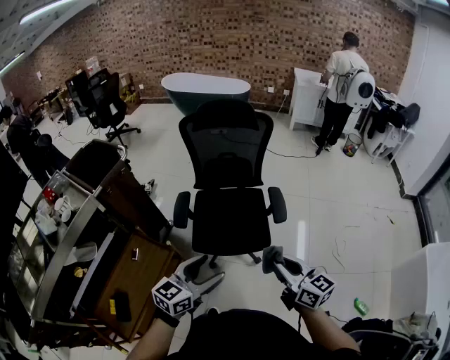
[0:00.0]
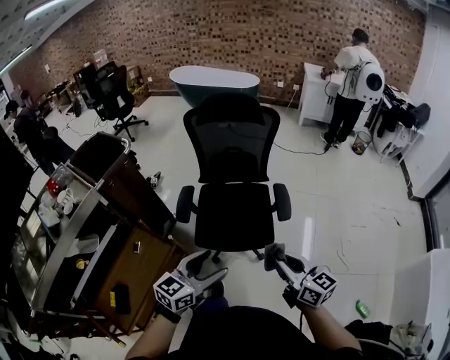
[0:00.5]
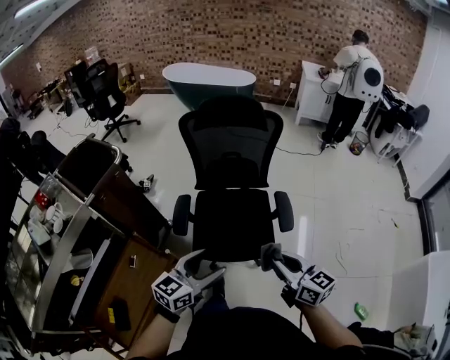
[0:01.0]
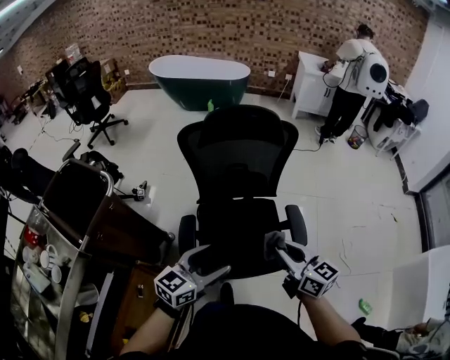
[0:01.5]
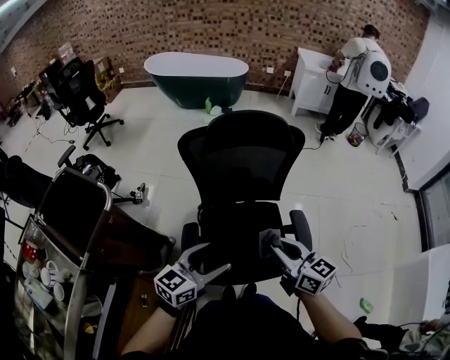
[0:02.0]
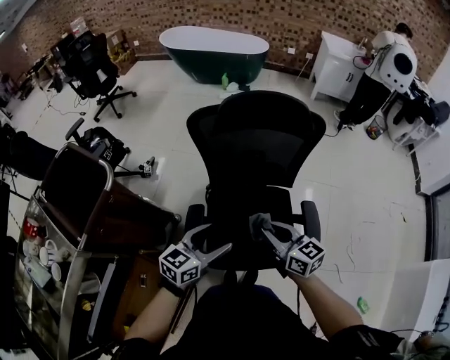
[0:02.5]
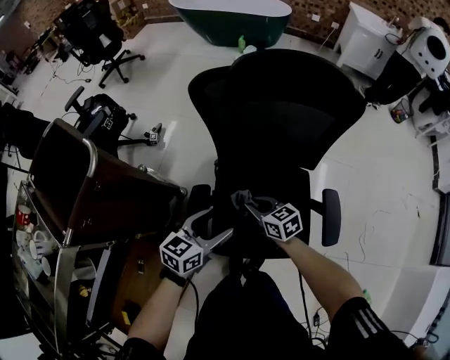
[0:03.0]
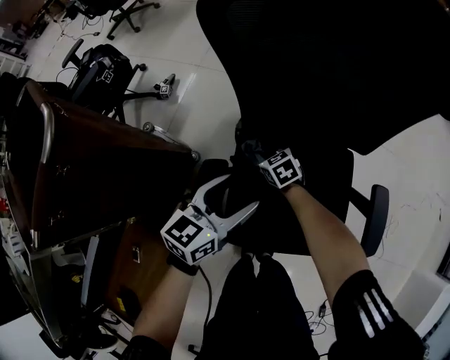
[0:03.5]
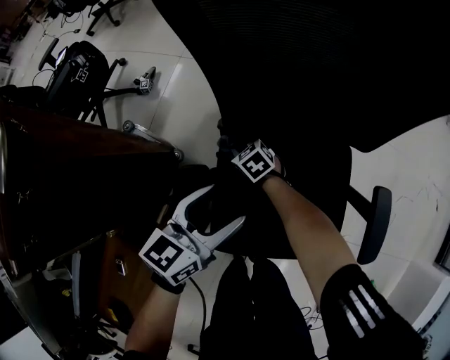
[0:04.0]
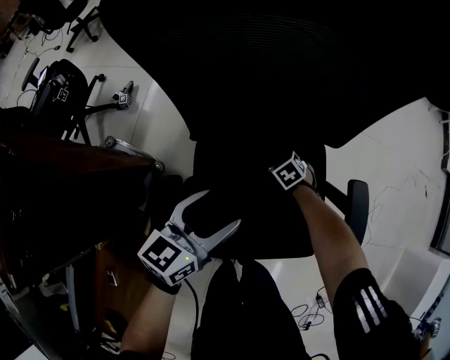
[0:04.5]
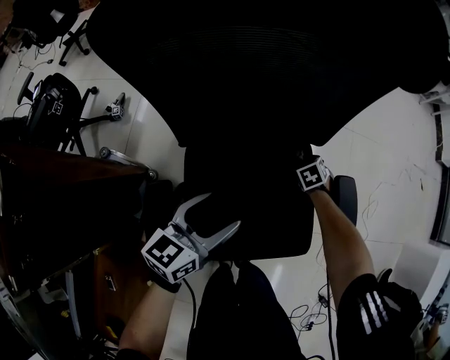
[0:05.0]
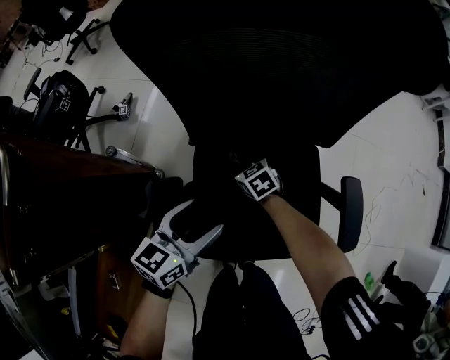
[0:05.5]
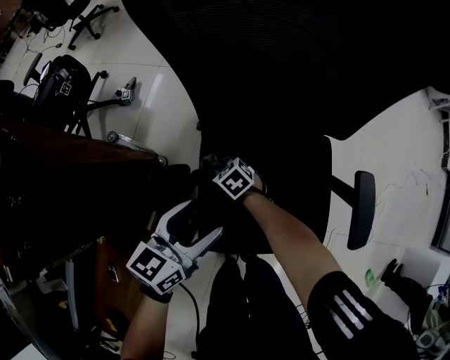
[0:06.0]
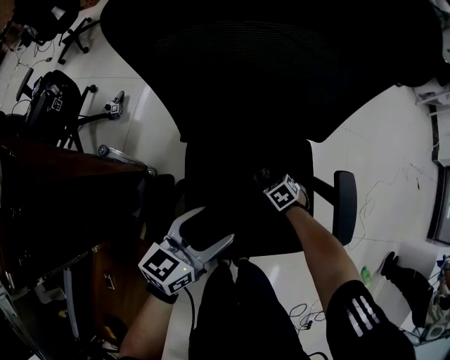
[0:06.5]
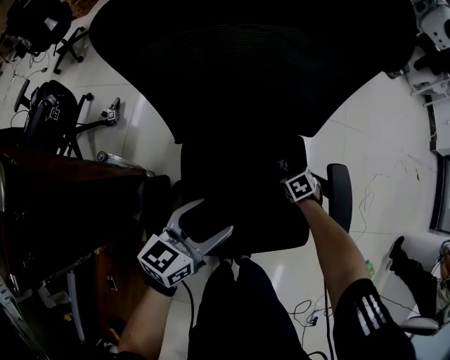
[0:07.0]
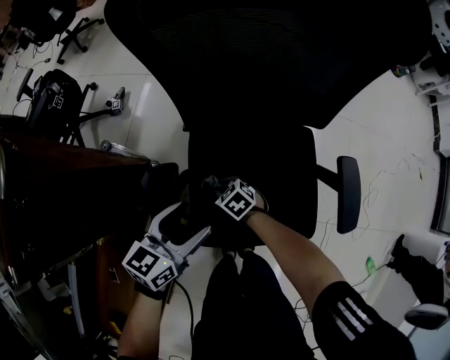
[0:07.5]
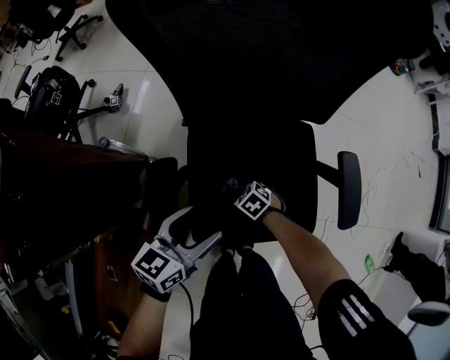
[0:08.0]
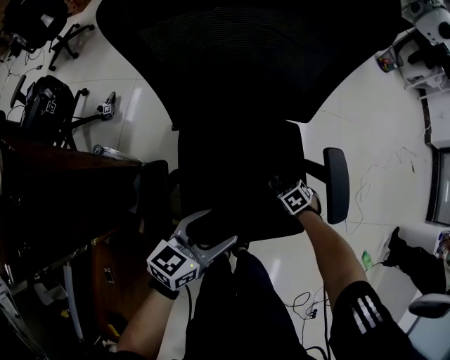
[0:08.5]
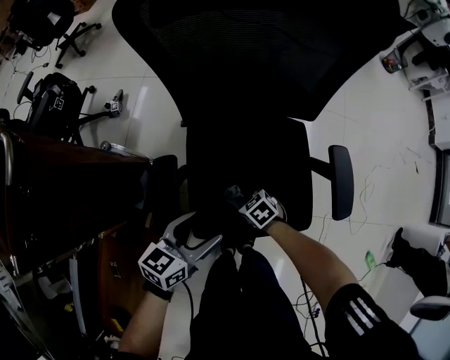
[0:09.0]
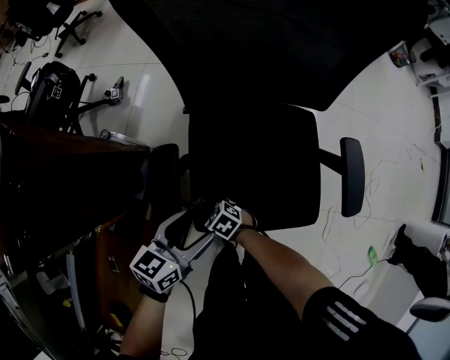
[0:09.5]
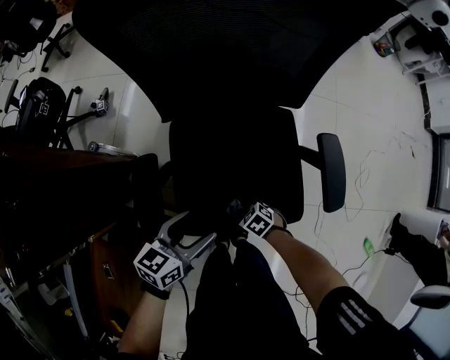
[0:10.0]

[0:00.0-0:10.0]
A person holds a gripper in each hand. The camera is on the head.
0:00.0 to 0:02.0: The left gripper heads forward, covering some 30 cm, while the right gripper heads forward and to the left, covering roughly 35 cm.
0:02.0 to 0:04.0: The right gripper travels downward and forward by roughly 60 cm, and tips its fingers downward by roughly 40 degrees; the left gripper heads downward and forward, covering about 30 cm, and turns by approximately 20 degrees.
0:04.0 to 0:06.0: The right gripper goes upward and returns, some 5 cm each way.
0:06.0 to 0:08.0: The left gripper moves backward, roughly 5 cm, and reaches some 10 cm to the right, then returns; the right gripper swings left and right, about 35 cm each way, with 2 reversals.
0:08.0 to 0:10.0: The left gripper ends up roughly 5 cm from where it was.

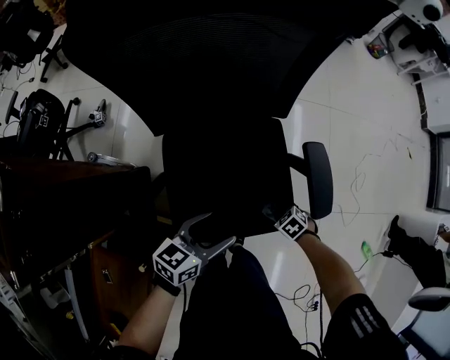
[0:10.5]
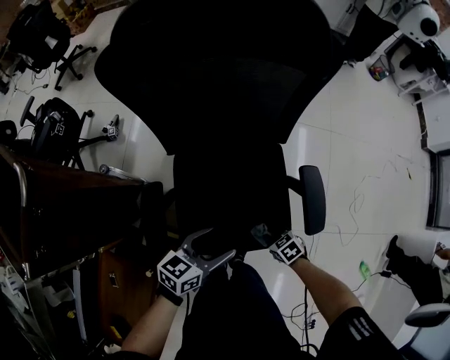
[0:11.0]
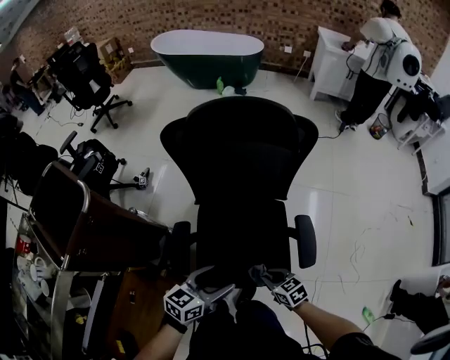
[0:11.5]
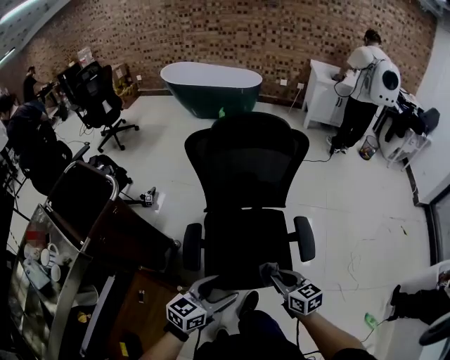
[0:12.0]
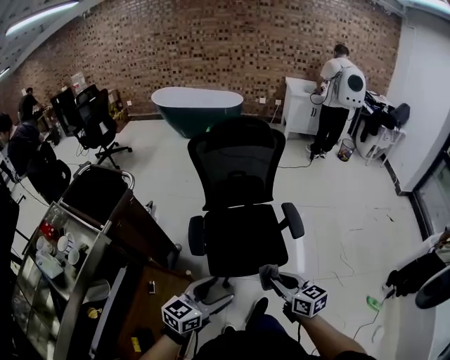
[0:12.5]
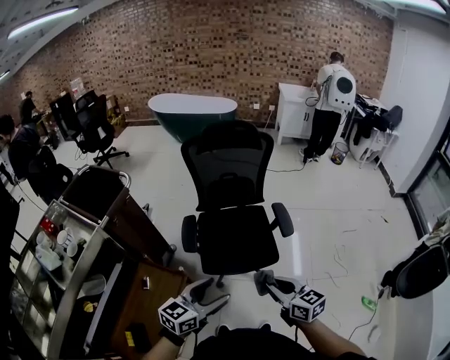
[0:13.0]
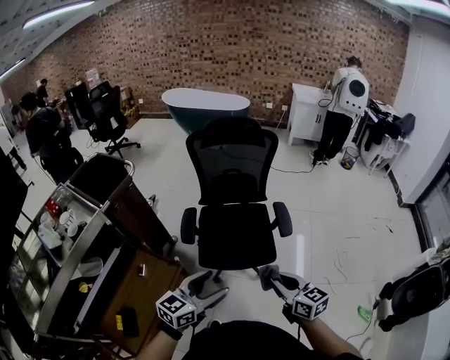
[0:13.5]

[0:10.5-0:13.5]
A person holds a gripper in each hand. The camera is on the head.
0:10.5 to 0:12.0: The right gripper heads upward, covering about 40 cm, and points its fingers about 50 degrees further upward. Meanwhile the left gripper is displaced upward by about 25 cm.
0:12.0 to 0:13.5: Both grippers move backward and upward, some 25 cm.

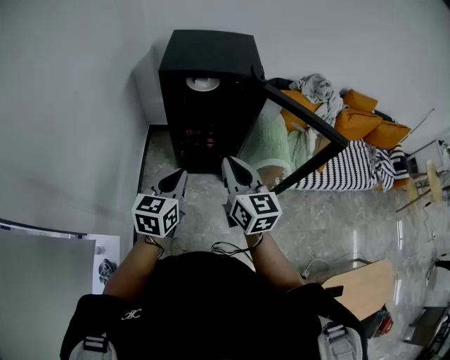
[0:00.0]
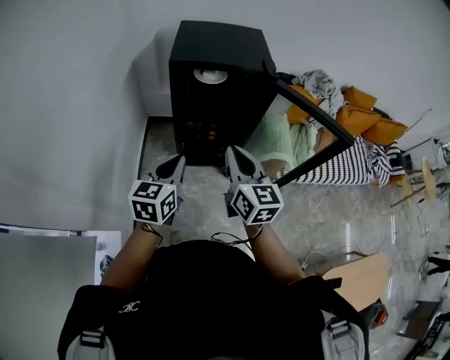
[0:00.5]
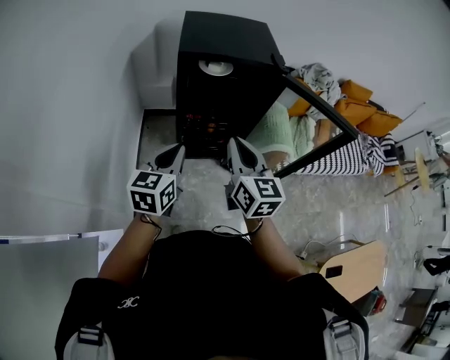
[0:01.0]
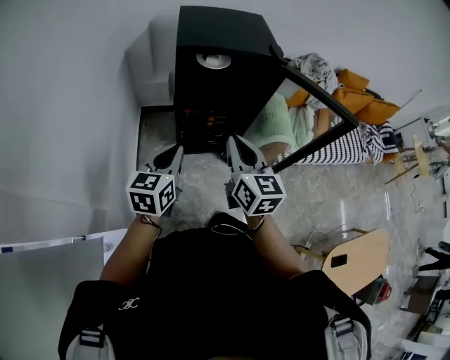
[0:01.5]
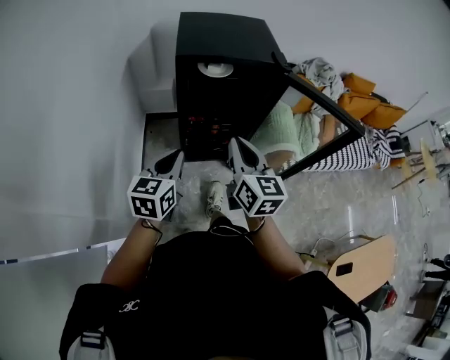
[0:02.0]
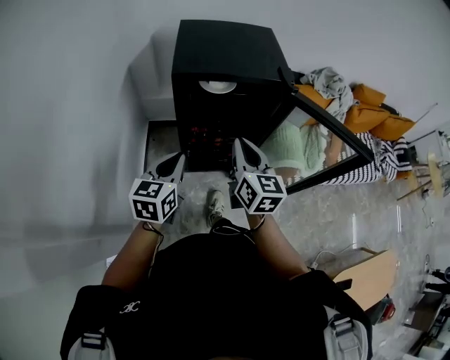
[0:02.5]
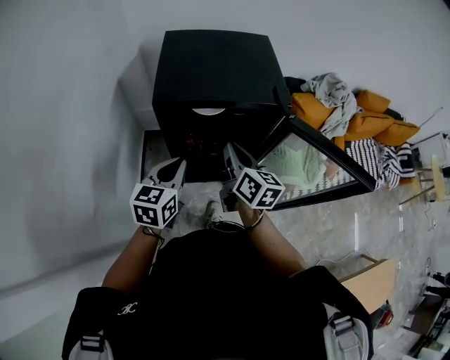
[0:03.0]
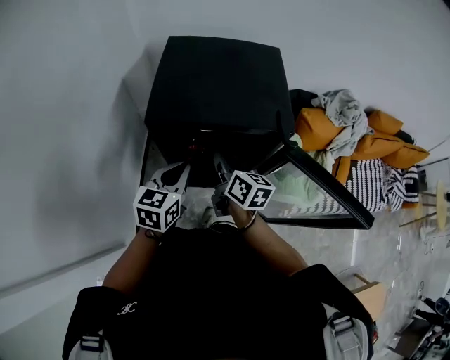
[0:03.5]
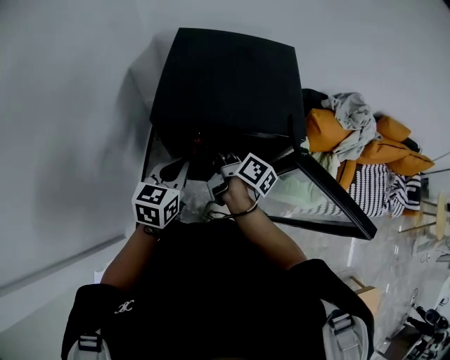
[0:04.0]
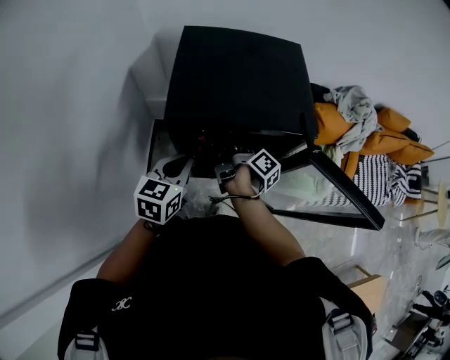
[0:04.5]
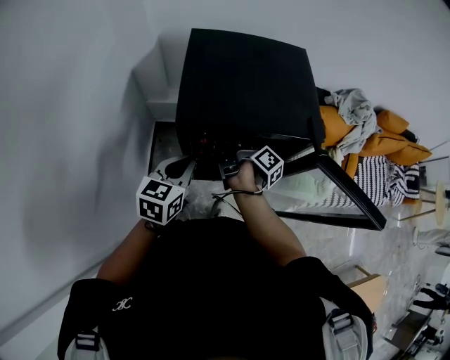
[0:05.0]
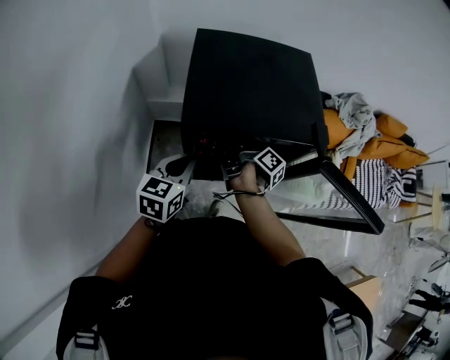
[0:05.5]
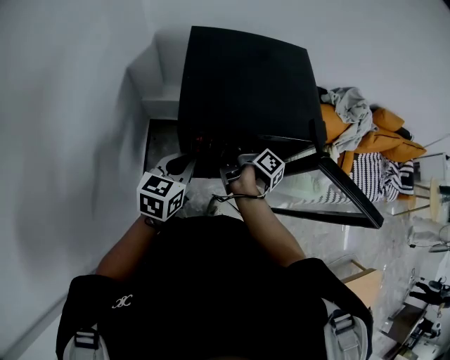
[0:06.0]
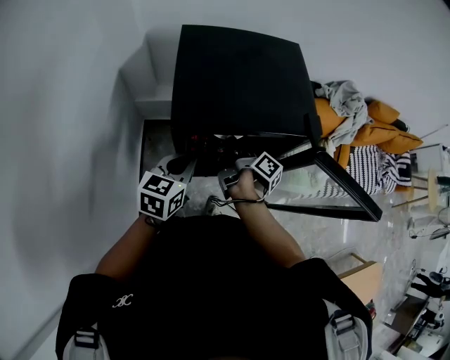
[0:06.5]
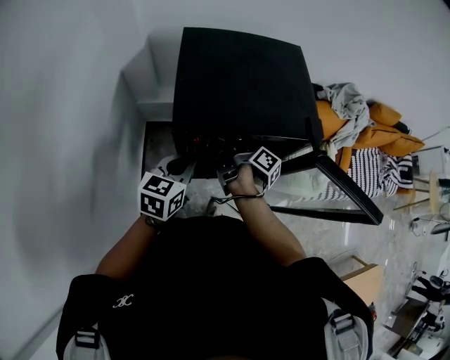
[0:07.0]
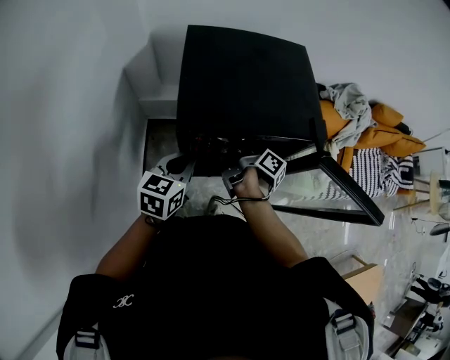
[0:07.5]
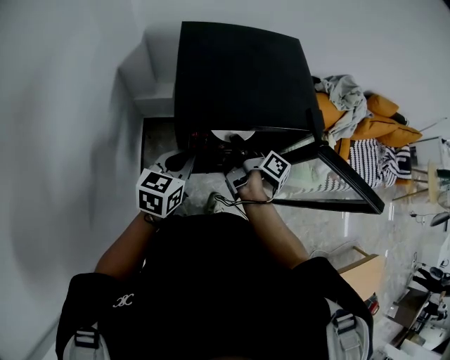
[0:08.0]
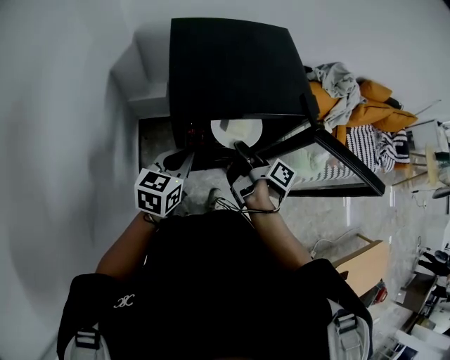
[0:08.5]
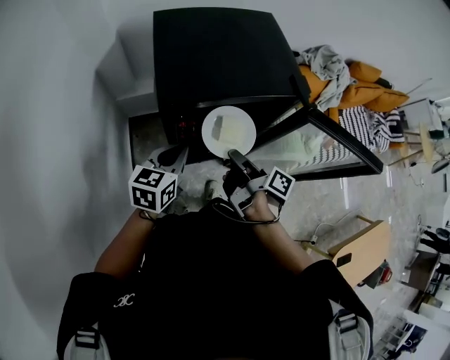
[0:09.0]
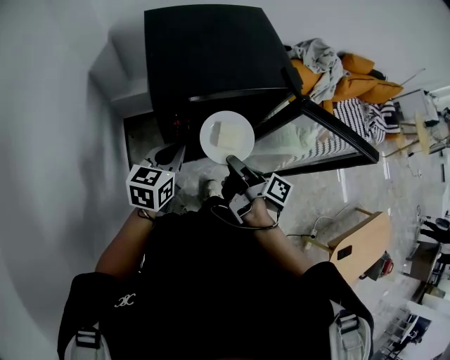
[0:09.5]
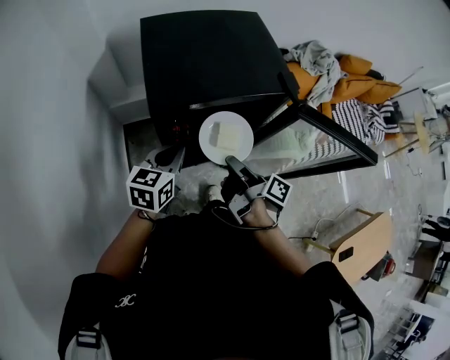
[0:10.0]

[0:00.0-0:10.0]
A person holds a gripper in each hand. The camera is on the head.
0:00.0 to 0:02.0: Both grippers move to the left, about 10 cm.
0:02.0 to 0:04.0: The two grippers go some 30 cm forward. The right gripper twists about 50 degrees clockwise, seen from behind.
0:04.0 to 0:06.0: The left gripper moves about 5 cm; the right gripper shifts by approximately 5 cm, and swivels about 20 degrees.
0:06.0 to 0:08.0: The grippers make only small movements.
0:08.0 to 0:10.0: The right gripper goes approximately 15 cm backward.

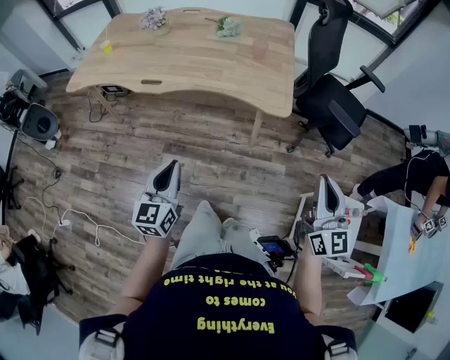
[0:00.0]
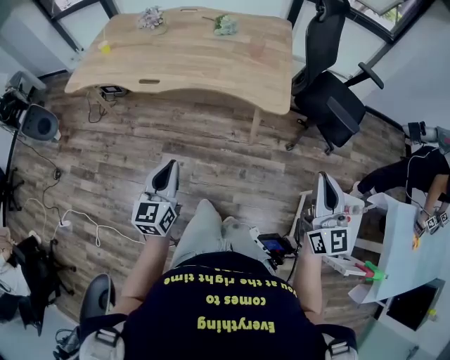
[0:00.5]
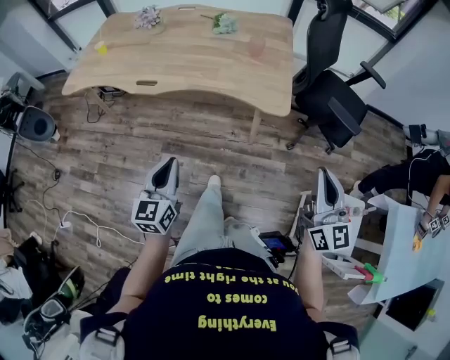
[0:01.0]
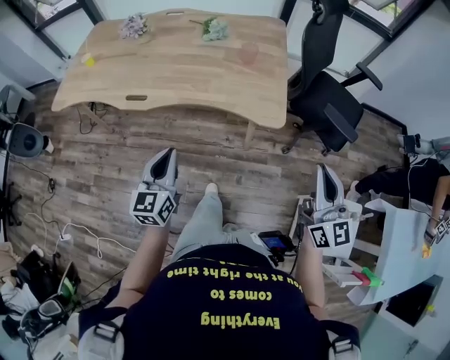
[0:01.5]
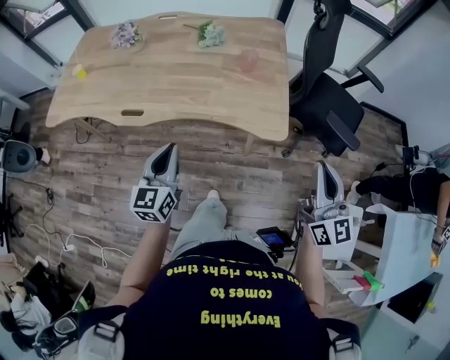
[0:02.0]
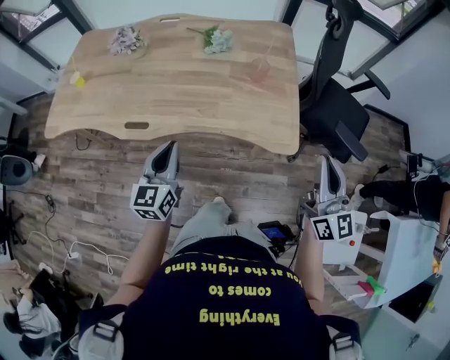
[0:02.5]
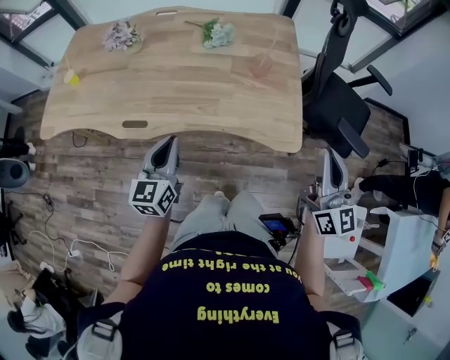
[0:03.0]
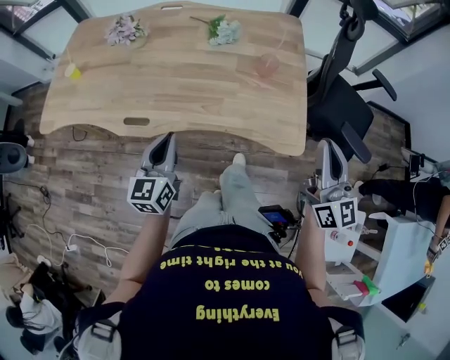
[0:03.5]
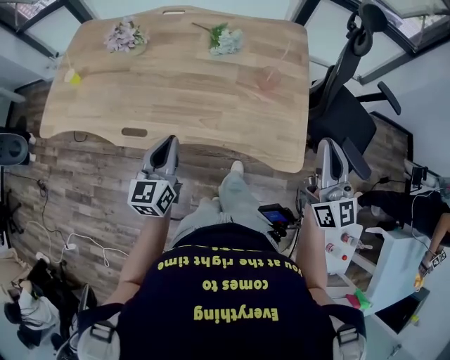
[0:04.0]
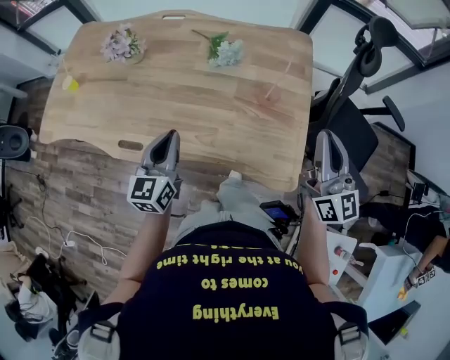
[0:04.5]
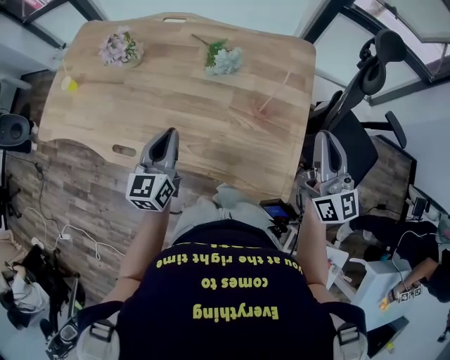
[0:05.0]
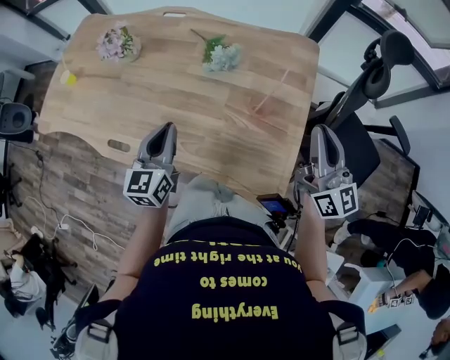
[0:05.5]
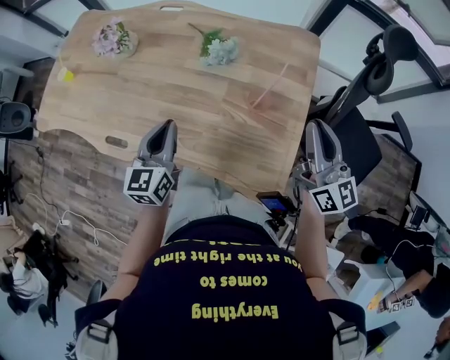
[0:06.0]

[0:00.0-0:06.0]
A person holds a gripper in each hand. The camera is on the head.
0:00.0 to 0:02.0: Both grippers travel together forward, approximately 20 cm.
0:02.0 to 0:04.0: Both grippers travel together forward, roughly 20 cm.
0:04.0 to 0:06.0: The left gripper heads forward and to the right, covering approximately 15 cm. The right gripper moves forward, some 20 cm.
